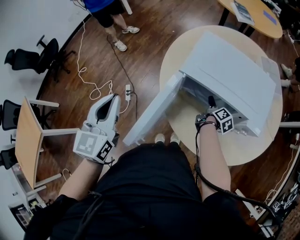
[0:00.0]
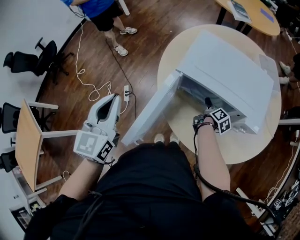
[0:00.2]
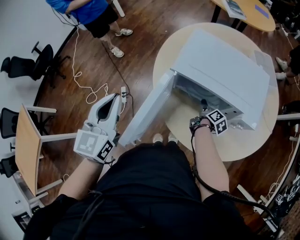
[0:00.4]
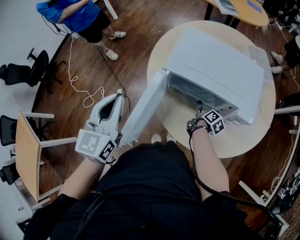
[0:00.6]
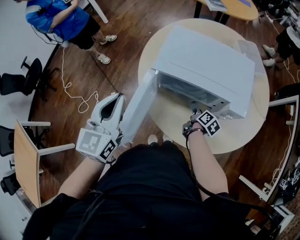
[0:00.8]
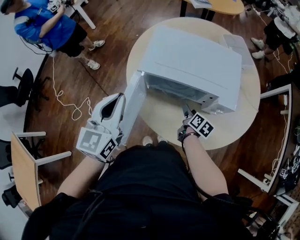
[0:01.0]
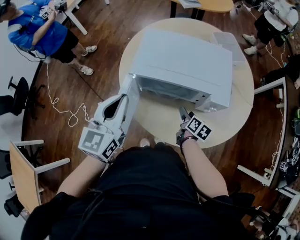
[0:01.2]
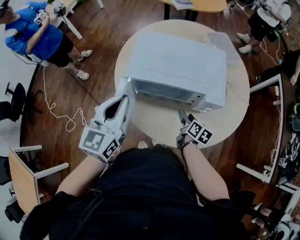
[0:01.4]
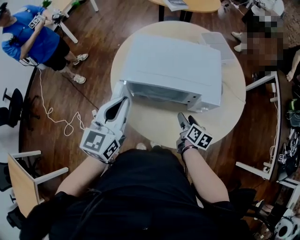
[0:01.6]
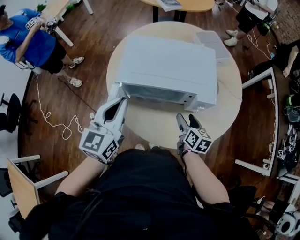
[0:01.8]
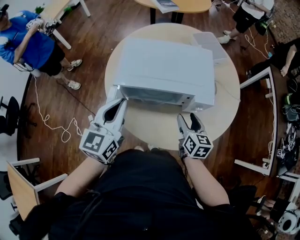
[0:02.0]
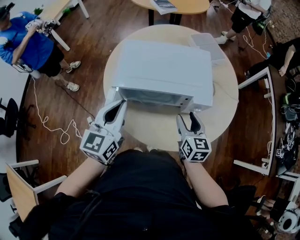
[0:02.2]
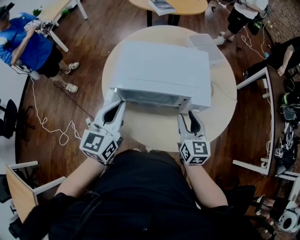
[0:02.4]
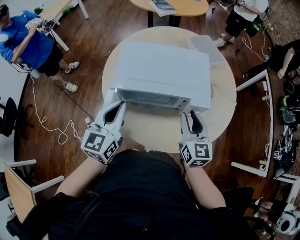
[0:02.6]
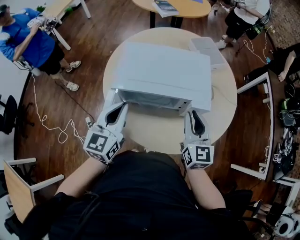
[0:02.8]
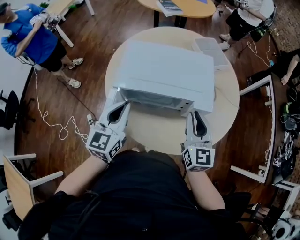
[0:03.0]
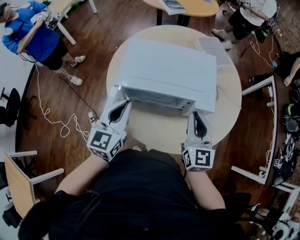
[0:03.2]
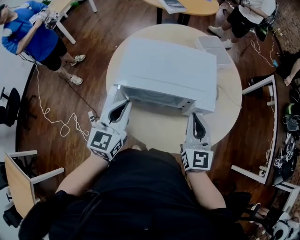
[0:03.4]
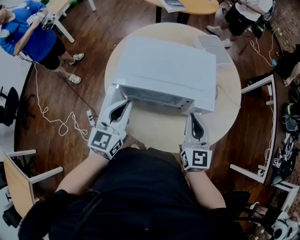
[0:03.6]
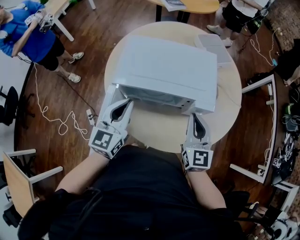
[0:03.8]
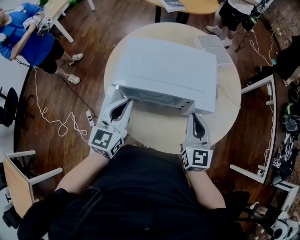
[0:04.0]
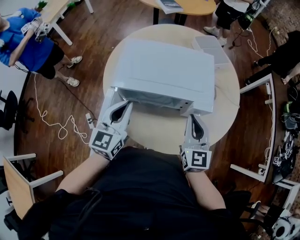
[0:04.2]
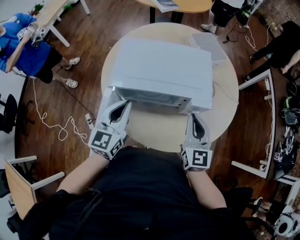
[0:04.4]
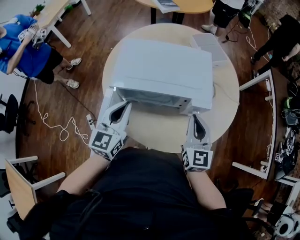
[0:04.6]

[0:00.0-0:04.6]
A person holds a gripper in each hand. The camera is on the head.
0:00.0 to 0:01.6: The right gripper travels backward, to the right and upward by some 15 cm, and changes its angle by roughly 20 degrees; the left gripper travels to the right and forward by approximately 20 cm, and swivels some 30 degrees.
0:01.6 to 0:03.0: The right gripper moves upward, some 20 cm, rotates around the line of its fingers by approximately 40 degrees, counterclockwise from behind, and closes its fingers.
0:03.0 to 0:04.6: There are only small adjustments of the grippers.

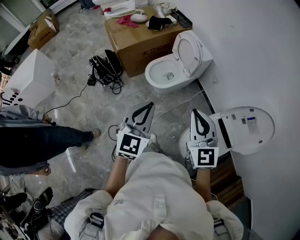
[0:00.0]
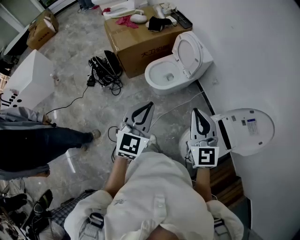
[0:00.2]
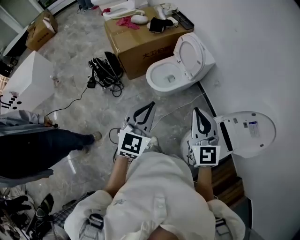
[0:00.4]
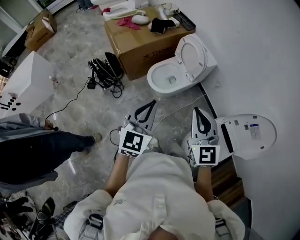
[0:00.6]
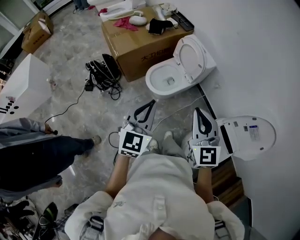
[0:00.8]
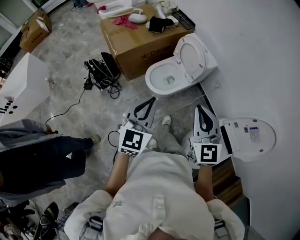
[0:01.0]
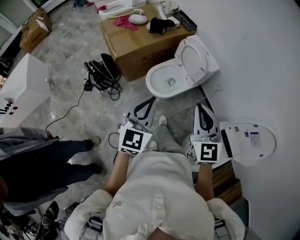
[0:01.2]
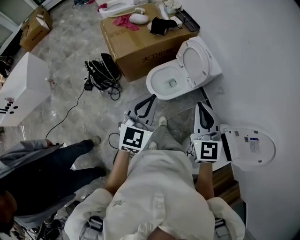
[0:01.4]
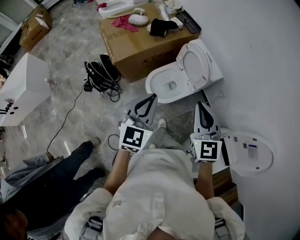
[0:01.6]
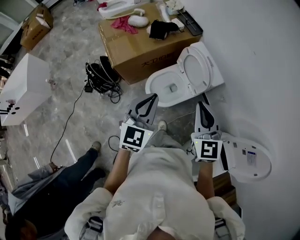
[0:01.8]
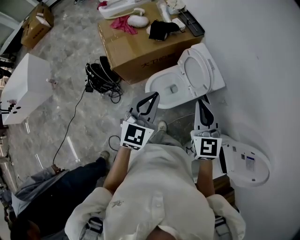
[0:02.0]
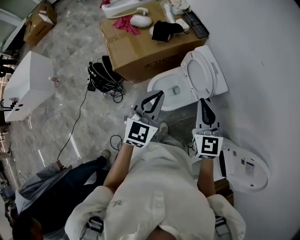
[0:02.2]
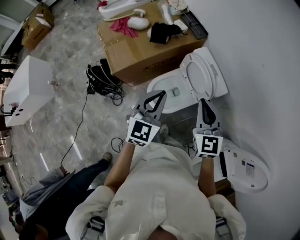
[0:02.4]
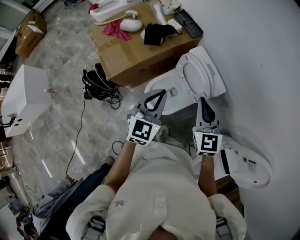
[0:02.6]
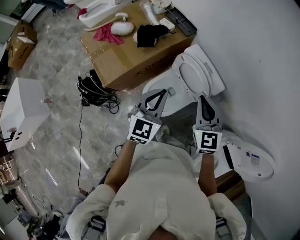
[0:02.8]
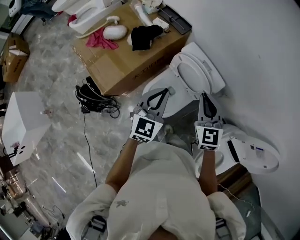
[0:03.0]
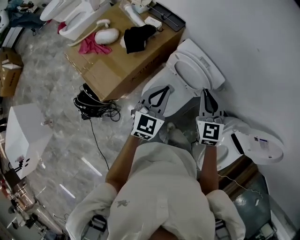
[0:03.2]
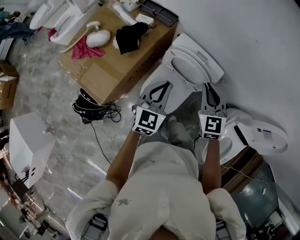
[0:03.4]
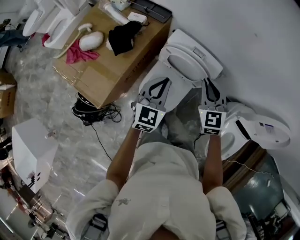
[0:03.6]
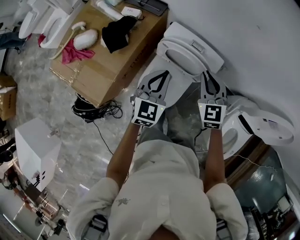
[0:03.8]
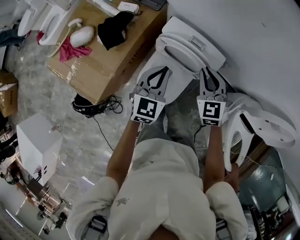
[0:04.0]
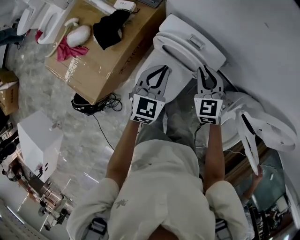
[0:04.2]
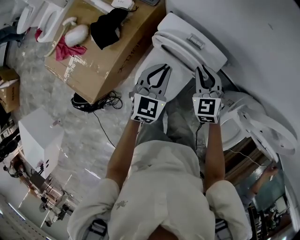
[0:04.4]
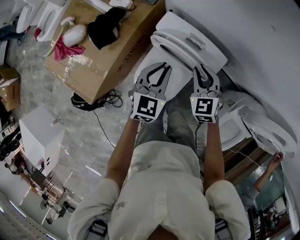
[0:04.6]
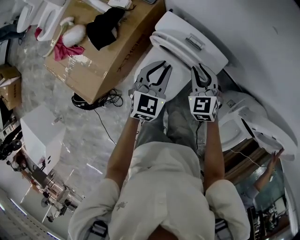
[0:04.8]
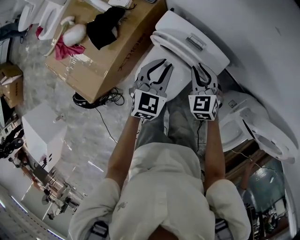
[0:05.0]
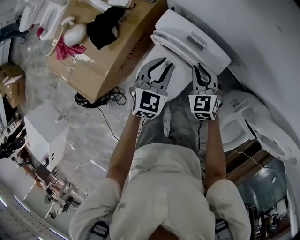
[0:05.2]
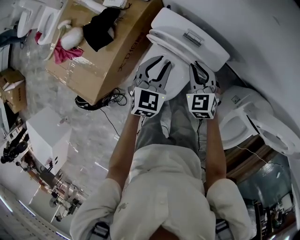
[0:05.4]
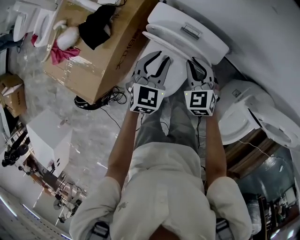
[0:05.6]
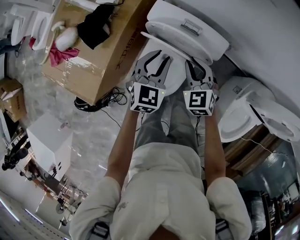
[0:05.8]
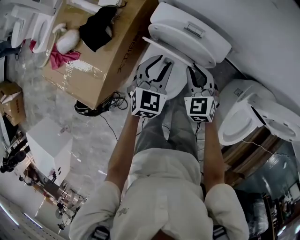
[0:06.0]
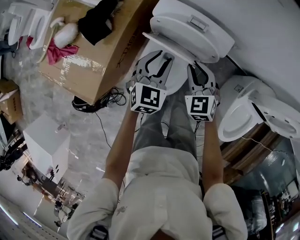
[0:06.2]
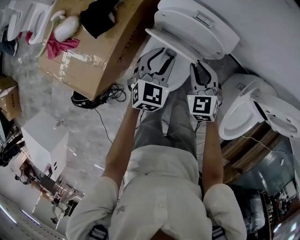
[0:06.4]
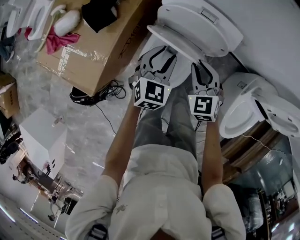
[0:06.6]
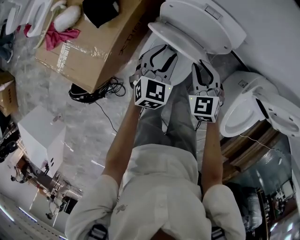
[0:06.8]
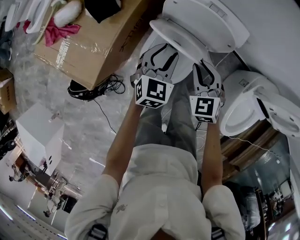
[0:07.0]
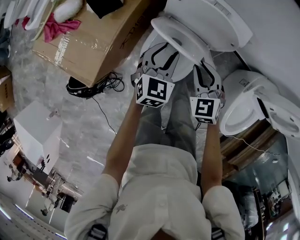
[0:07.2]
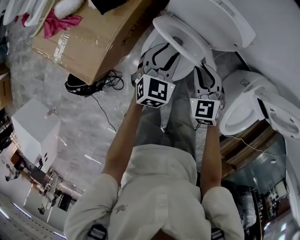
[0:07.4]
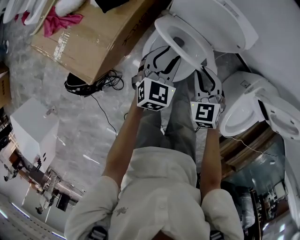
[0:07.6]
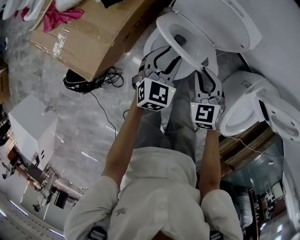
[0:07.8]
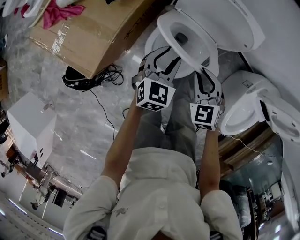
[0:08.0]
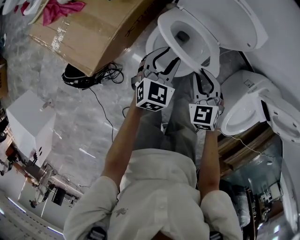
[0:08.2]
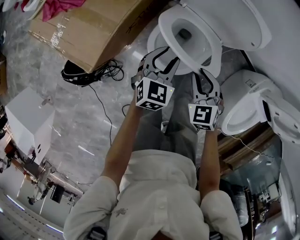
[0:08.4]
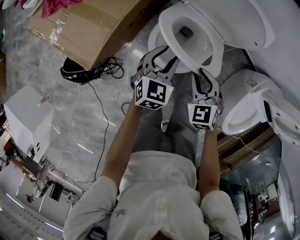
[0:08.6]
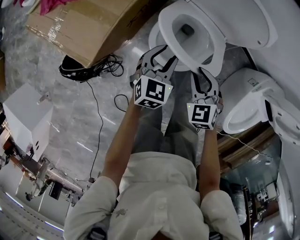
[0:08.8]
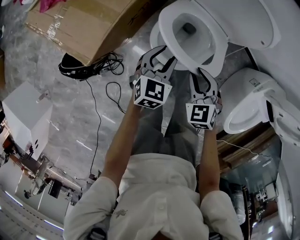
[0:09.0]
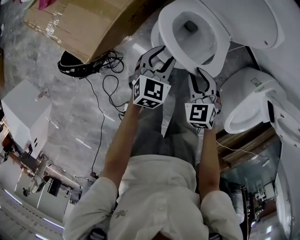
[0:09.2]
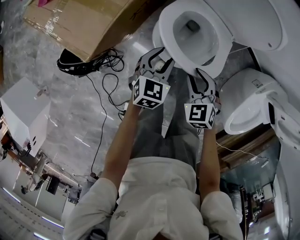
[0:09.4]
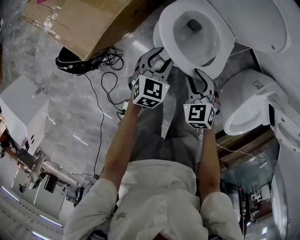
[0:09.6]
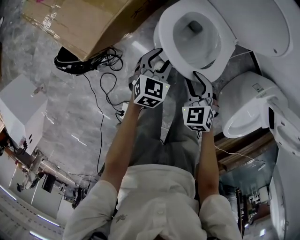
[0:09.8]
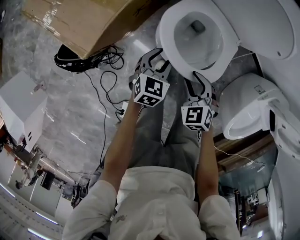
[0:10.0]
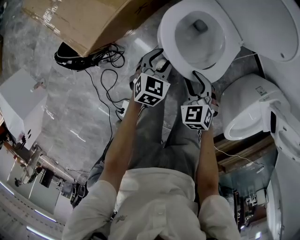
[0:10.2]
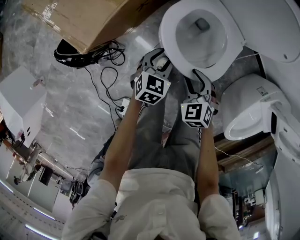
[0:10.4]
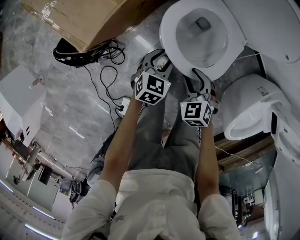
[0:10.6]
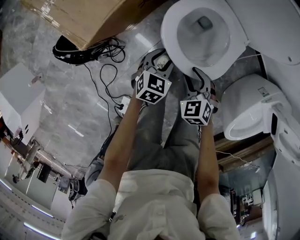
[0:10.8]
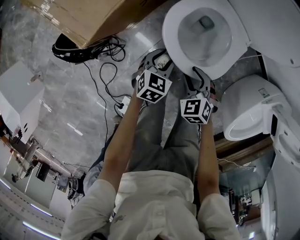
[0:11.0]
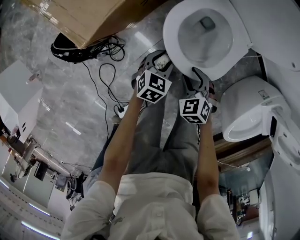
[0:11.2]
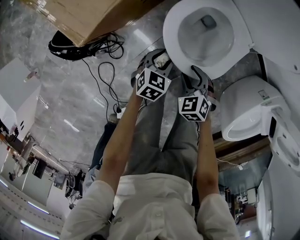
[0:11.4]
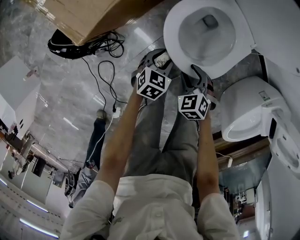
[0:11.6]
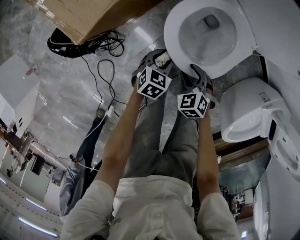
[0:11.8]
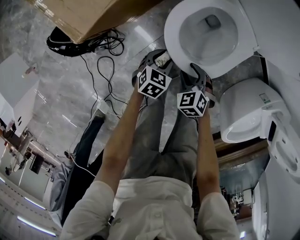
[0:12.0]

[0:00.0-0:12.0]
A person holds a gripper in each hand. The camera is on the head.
0:00.0 to 0:01.6: Both grippers travel together forward, some 25 cm.
0:01.6 to 0:03.0: The two grippers go some 25 cm forward.
0:03.0 to 0:04.4: The right gripper heads downward and forward, covering roughly 20 cm. The left gripper heads forward, downward and to the right, covering about 20 cm.
0:04.4 to 0:06.0: Both grippers move downward, roughly 5 cm. The left gripper opens.
0:06.0 to 0:07.6: The left gripper shifts roughly 15 cm backward, downward and to the left. Meanwhile the right gripper heads backward and to the left, covering approximately 15 cm.
0:07.6 to 0:09.0: The right gripper heads backward and downward, covering roughly 10 cm; the left gripper goes some 10 cm downward and backward.
0:09.0 to 0:10.4: Both grippers move downward and backward, roughly 10 cm.
0:10.4 to 0:12.0: The right gripper travels downward by roughly 10 cm; the left gripper goes approximately 10 cm downward and backward.

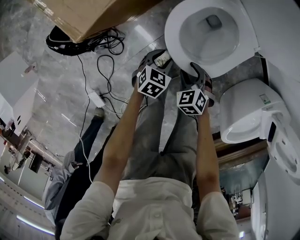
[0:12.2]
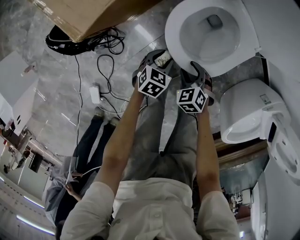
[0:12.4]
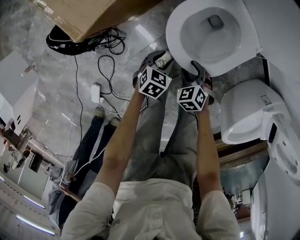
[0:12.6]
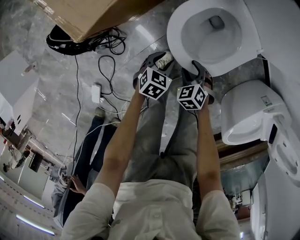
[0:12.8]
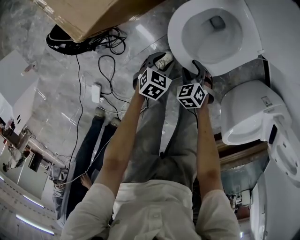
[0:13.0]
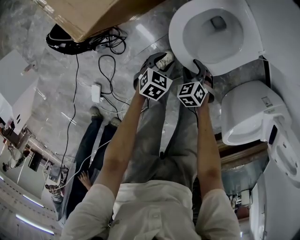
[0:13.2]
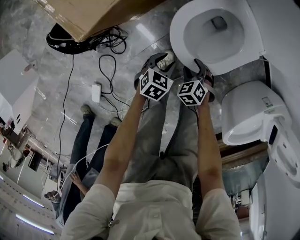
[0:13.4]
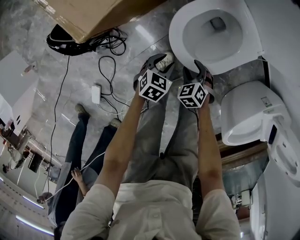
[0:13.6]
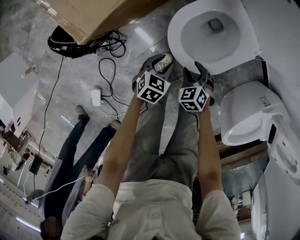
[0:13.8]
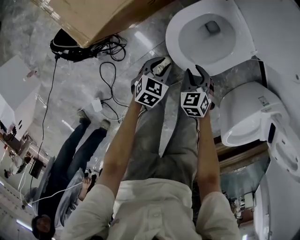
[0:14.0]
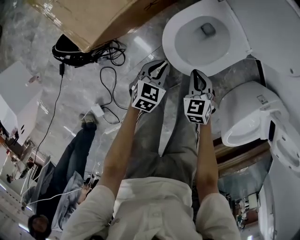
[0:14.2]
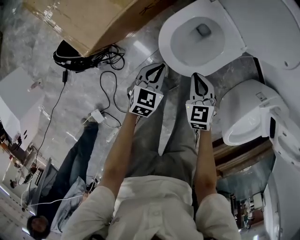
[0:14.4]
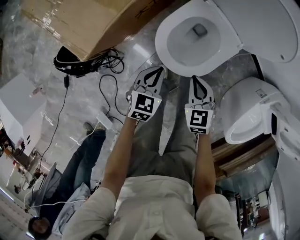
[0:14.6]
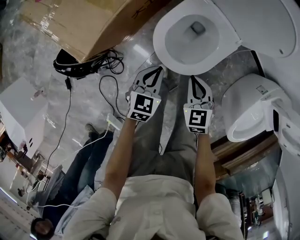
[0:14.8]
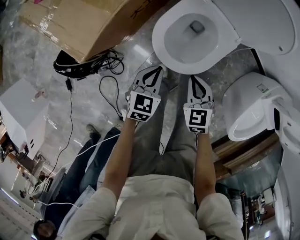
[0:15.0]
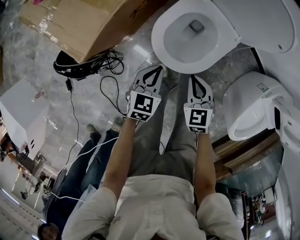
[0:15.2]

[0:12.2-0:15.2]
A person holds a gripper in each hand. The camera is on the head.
0:13.8 to 0:15.2: Both grippers move upward, roughly 15 cm. The right gripper changes its angle by approximately 30 degrees, and closes, while the left gripper closes.

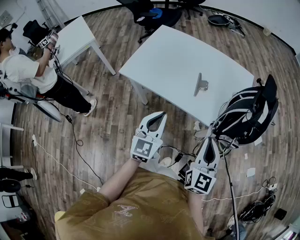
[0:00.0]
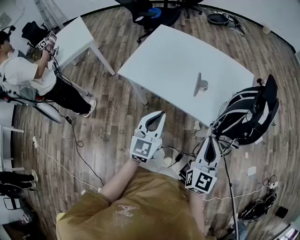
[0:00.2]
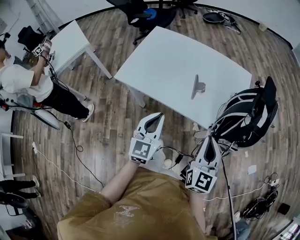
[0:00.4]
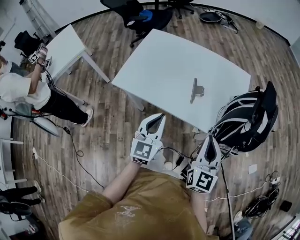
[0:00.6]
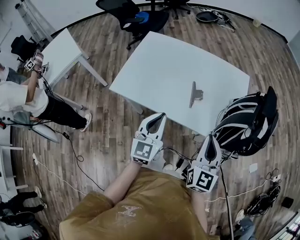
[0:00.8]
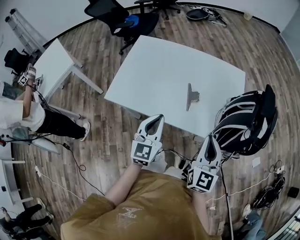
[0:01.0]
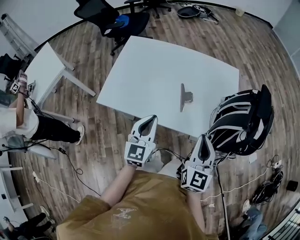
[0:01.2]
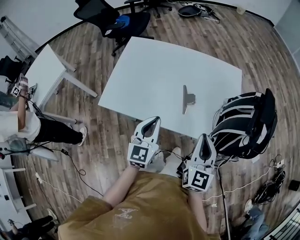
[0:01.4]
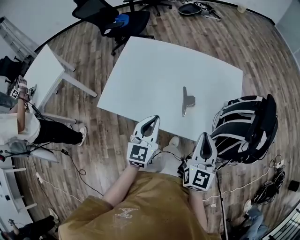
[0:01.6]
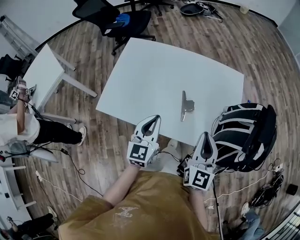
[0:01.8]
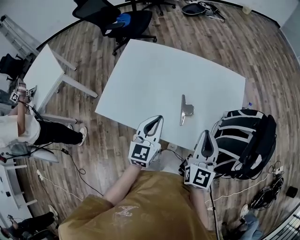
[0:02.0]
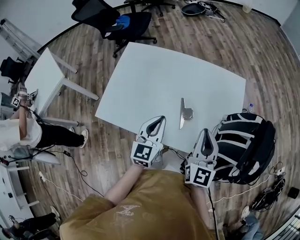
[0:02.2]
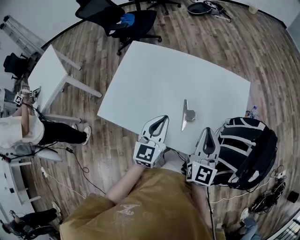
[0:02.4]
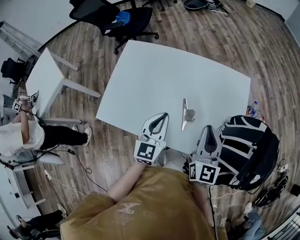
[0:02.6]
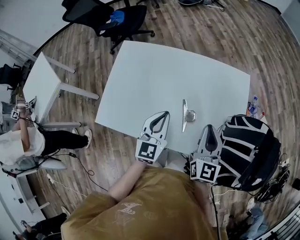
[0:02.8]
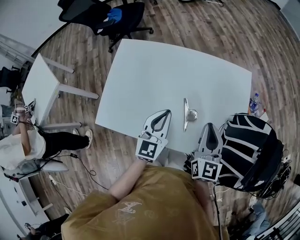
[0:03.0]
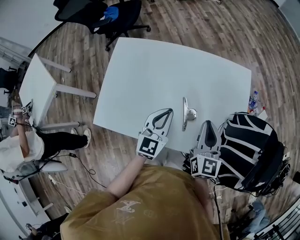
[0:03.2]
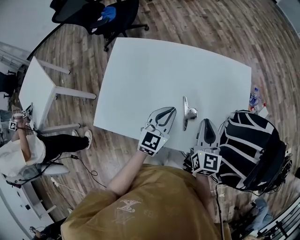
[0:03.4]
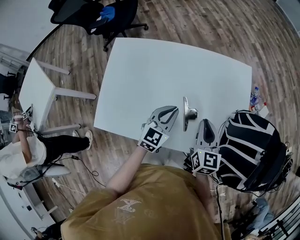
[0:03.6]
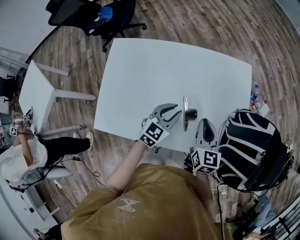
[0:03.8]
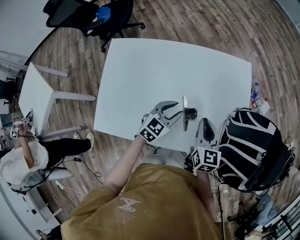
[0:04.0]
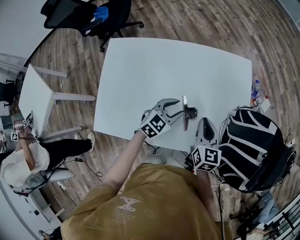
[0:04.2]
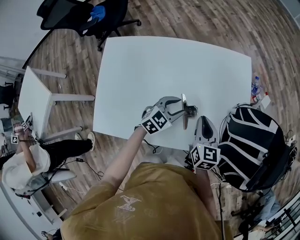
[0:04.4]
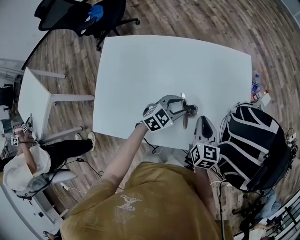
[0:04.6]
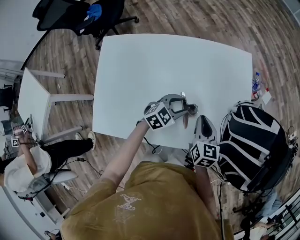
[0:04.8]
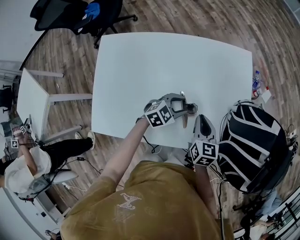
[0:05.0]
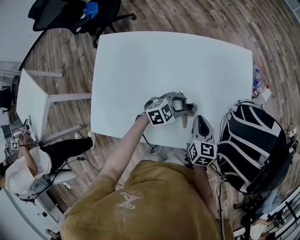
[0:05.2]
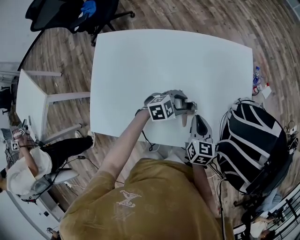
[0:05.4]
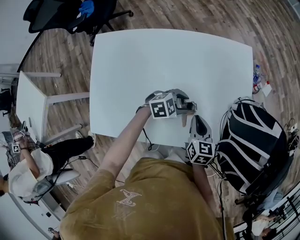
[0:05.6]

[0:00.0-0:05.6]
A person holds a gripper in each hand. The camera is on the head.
0:00.0 to 0:01.4: Both grippers travel together forward, some 15 cm.
0:01.4 to 0:02.8: The grippers both shift forward by some 15 cm.
0:02.8 to 0:04.2: The right gripper goes some 10 cm downward, and rotates some 20 degrees. The left gripper is displaced downward and forward by about 15 cm, turns by some 40 degrees, and opens.
0:04.2 to 0:05.6: The left gripper heads downward and to the right, covering some 10 cm, and rotates approximately 40 degrees; the right gripper goes about 10 cm downward.
